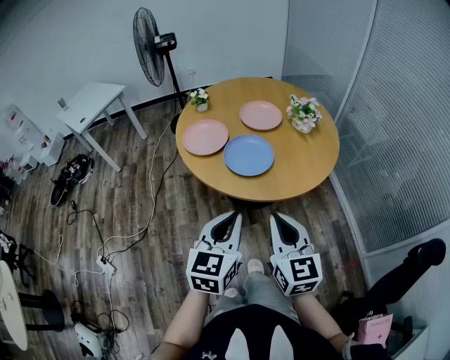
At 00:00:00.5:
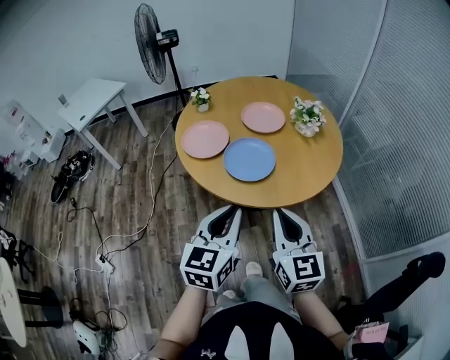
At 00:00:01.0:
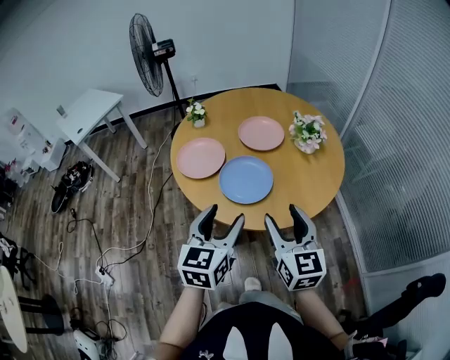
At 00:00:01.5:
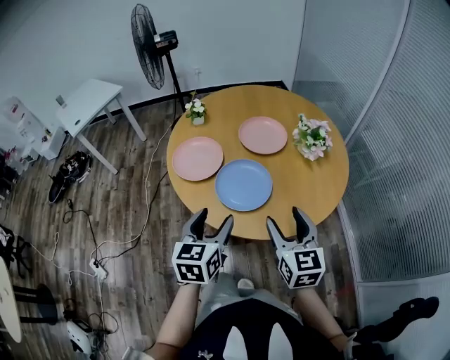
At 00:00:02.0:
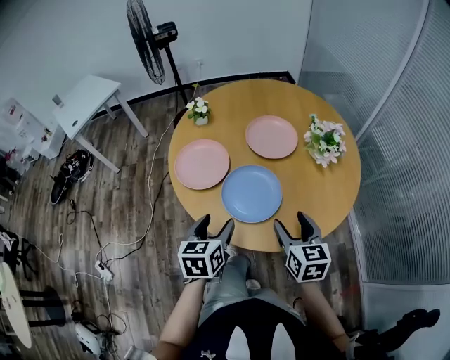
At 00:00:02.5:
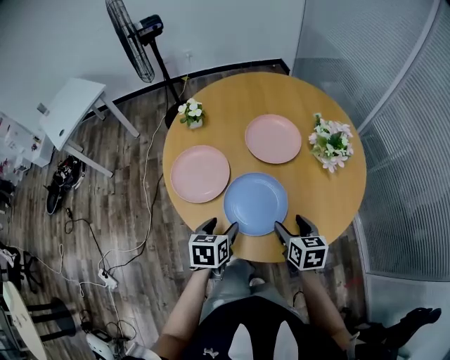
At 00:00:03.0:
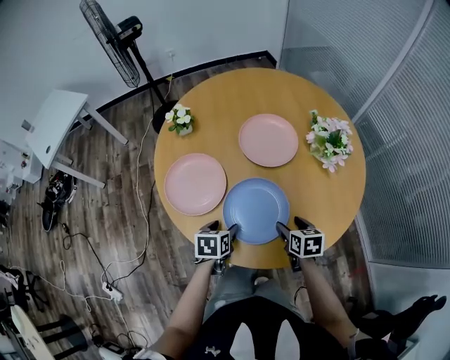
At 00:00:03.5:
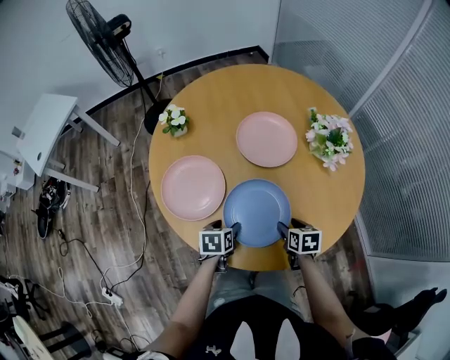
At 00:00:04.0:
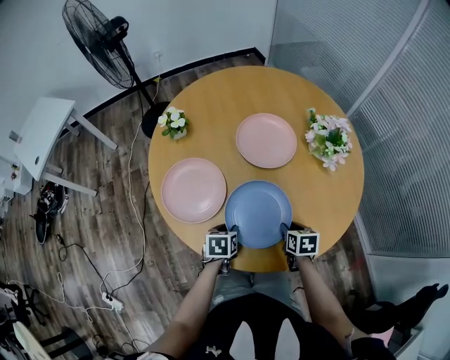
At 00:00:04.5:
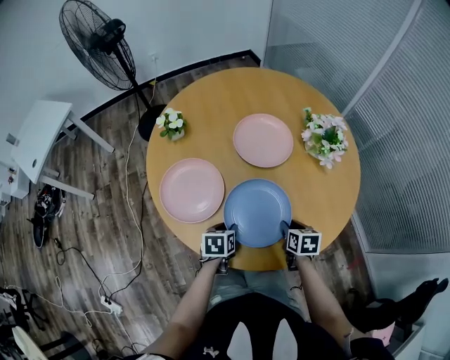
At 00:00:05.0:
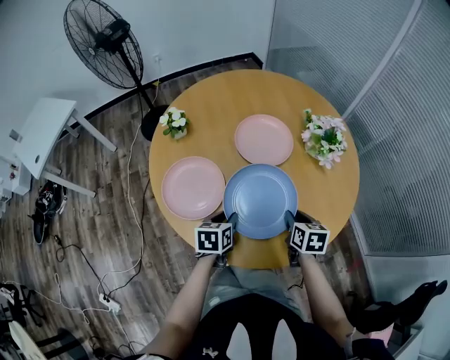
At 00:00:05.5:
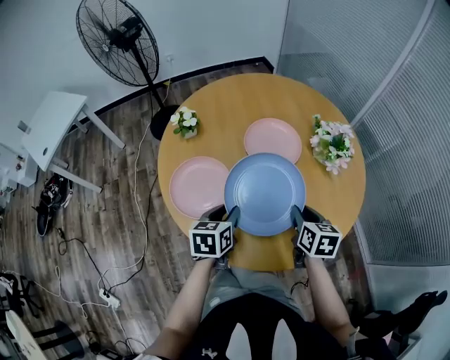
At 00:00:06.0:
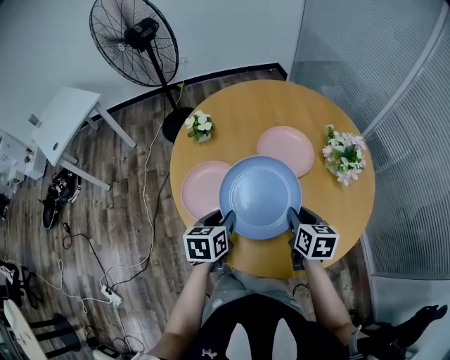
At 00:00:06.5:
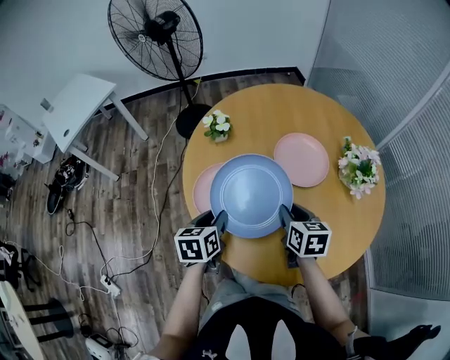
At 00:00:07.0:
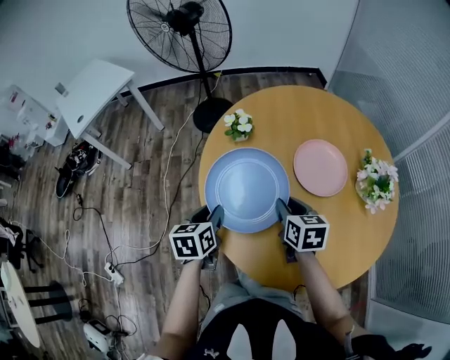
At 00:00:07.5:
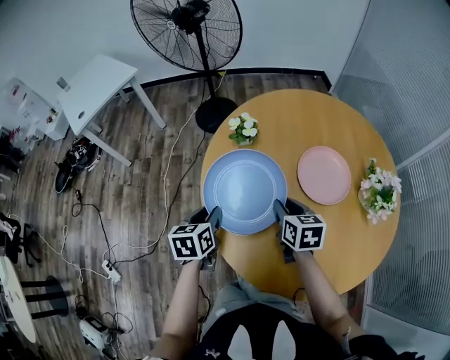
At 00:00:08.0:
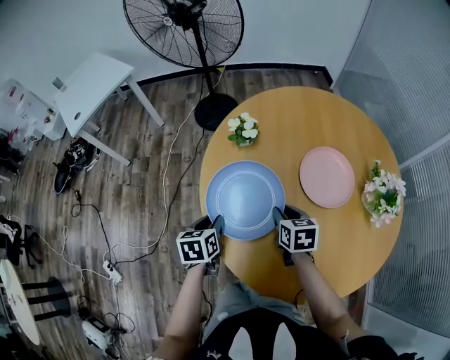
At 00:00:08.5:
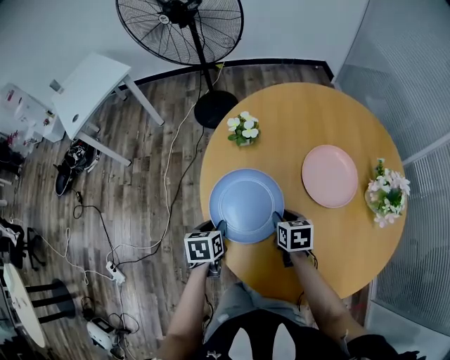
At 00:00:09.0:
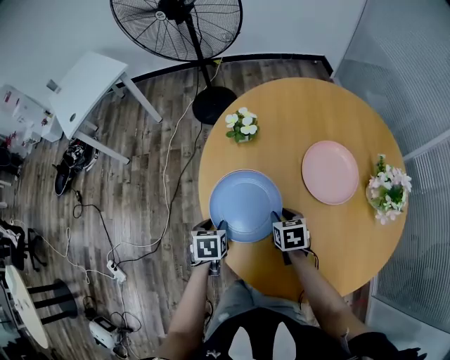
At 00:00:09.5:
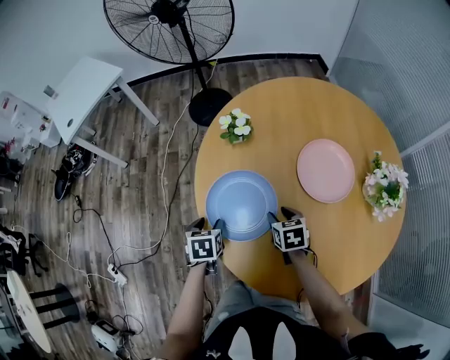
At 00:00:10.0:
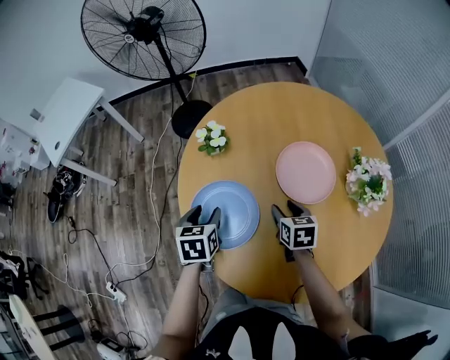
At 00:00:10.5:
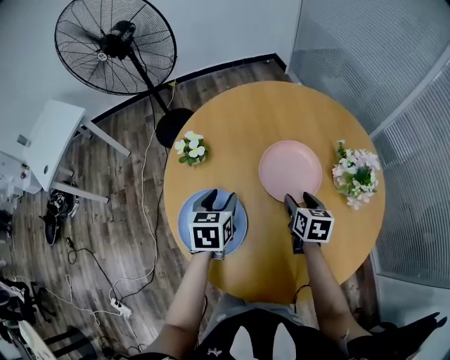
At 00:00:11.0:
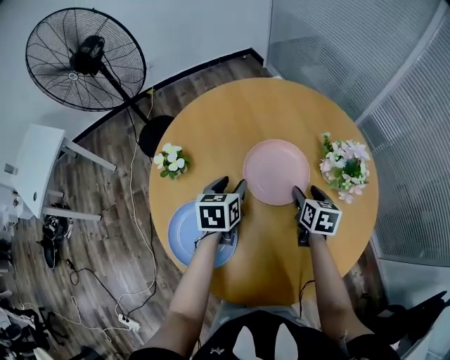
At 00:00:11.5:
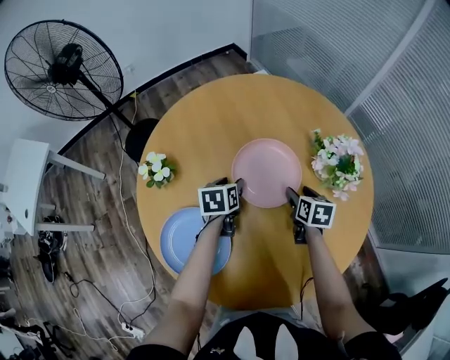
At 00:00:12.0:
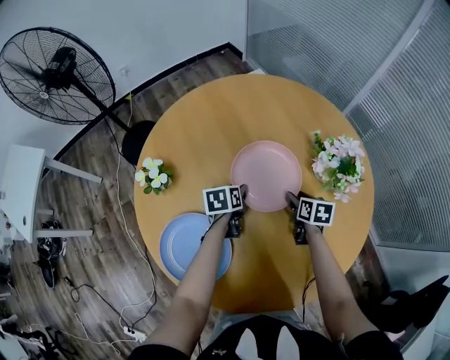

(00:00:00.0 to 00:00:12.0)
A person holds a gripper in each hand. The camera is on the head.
00:00:00.0 - 00:00:02.0: The right gripper is displaced forward by some 25 cm, and opens; the left gripper shifts some 30 cm forward and downward, changes its angle by roughly 30 degrees, and opens up.
00:00:02.0 - 00:00:04.0: The right gripper shifts some 20 cm downward, tips its fingers downward by some 30 degrees, and closes its fingers; the left gripper is displaced downward and forward by roughly 25 cm, turns by approximately 30 degrees, and closes.
00:00:04.0 - 00:00:06.0: Both grippers travel together upward and to the left, roughly 15 cm. The left gripper changes its angle by roughly 20 degrees.
00:00:06.0 - 00:00:08.0: The left gripper is displaced to the left by roughly 15 cm, and rotates some 20 degrees. The right gripper travels to the left and forward by some 20 cm, and turns by roughly 20 degrees.
00:00:08.0 - 00:00:10.0: The left gripper heads to the right and forward, covering some 10 cm. The right gripper shifts some 10 cm to the right, and opens its fingers.
00:00:10.0 - 00:00:12.0: The right gripper moves about 20 cm, and changes its angle by some 30 degrees; the left gripper changes place by approximately 30 cm, and changes its angle by approximately 30 degrees.

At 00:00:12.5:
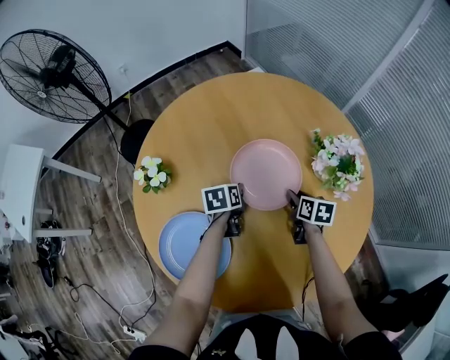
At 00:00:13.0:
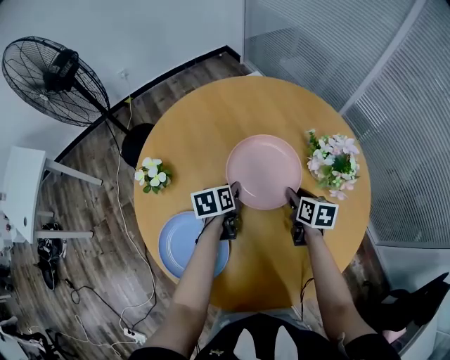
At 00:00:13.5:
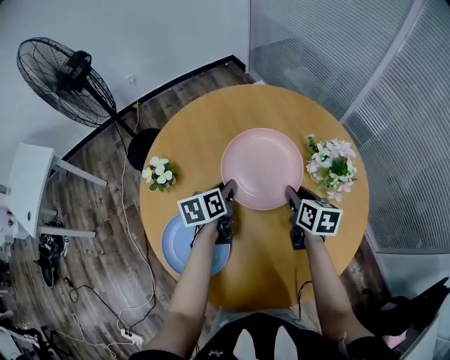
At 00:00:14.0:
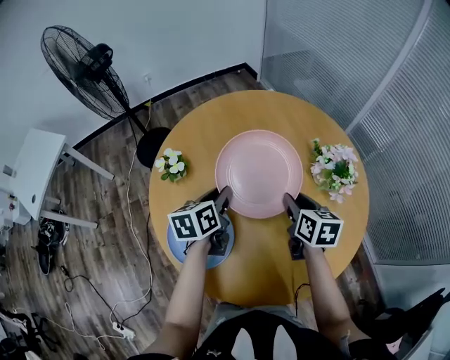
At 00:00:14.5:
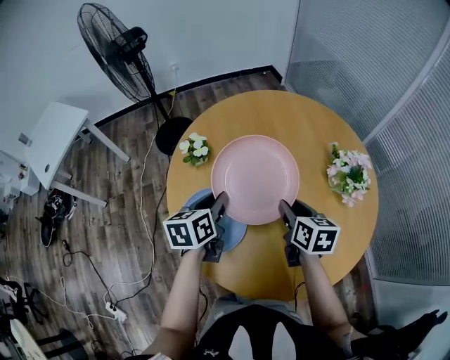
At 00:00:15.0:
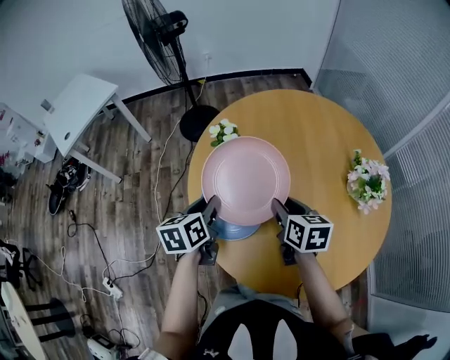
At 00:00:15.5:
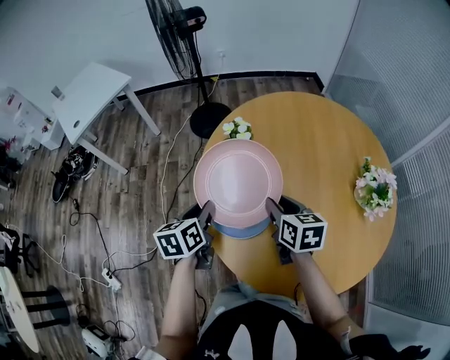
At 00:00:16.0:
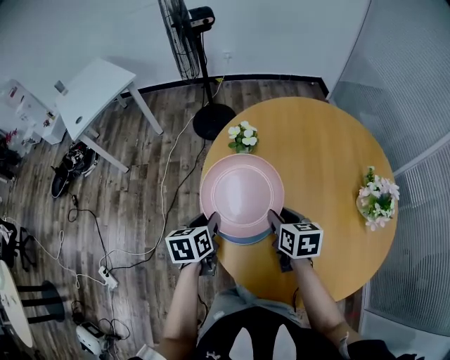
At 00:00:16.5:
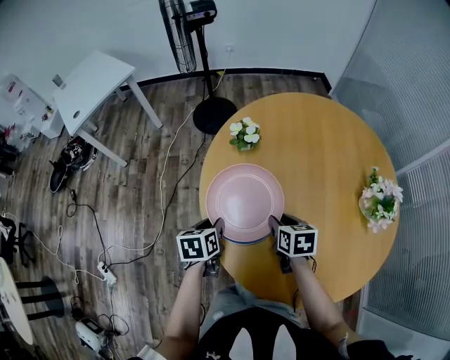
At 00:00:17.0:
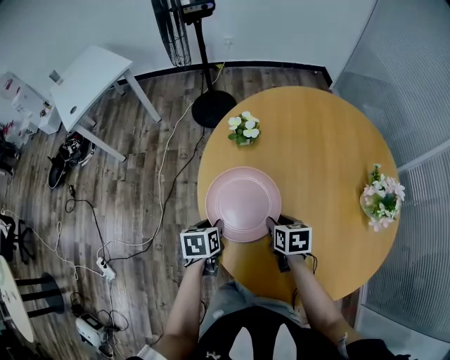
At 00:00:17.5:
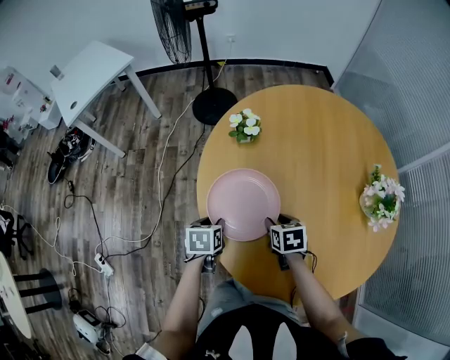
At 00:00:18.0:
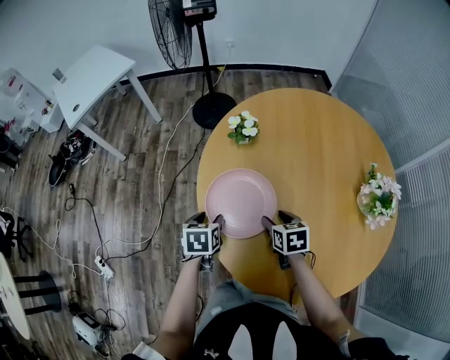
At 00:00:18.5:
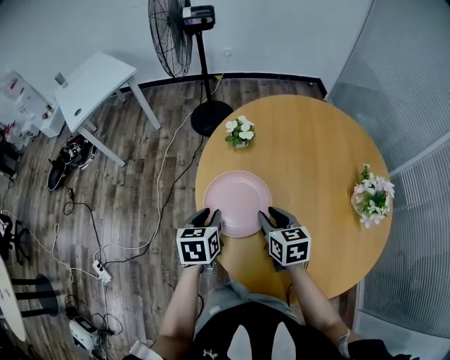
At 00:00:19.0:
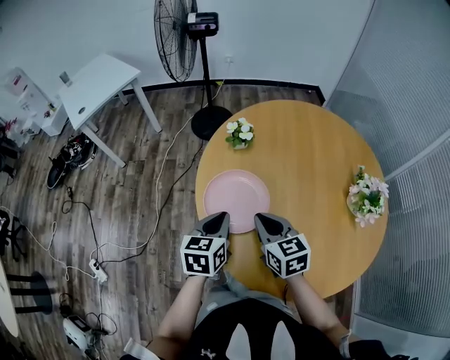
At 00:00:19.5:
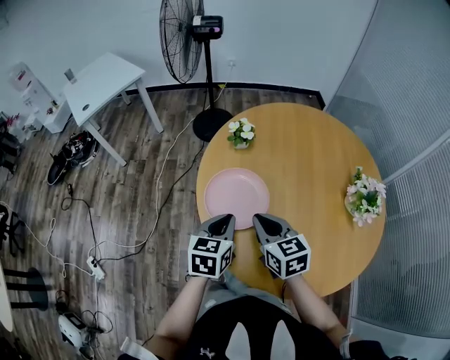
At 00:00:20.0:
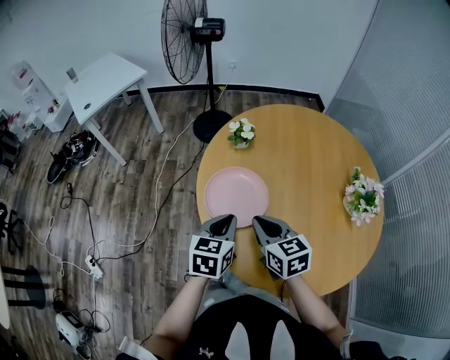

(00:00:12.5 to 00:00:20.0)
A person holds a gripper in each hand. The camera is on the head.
00:00:12.5 - 00:00:14.5: The right gripper travels upward, to the left and backward by about 25 cm, and rotates some 20 degrees. Meanwhile the left gripper travels upward, backward and to the left by approximately 25 cm, and rotates about 30 degrees.
00:00:14.5 - 00:00:16.5: The left gripper shifts some 20 cm to the left, downward and backward, and turns by some 20 degrees; the right gripper is displaced to the left and downward by roughly 15 cm, and swivels roughly 30 degrees.
00:00:16.5 - 00:00:18.0: The left gripper opens.
00:00:18.0 - 00:00:20.0: The left gripper moves upward, backward and to the right, about 15 cm, turns by some 30 degrees, and closes. The right gripper travels upward, backward and to the left by some 20 cm, turns by approximately 30 degrees, and closes its fingers.

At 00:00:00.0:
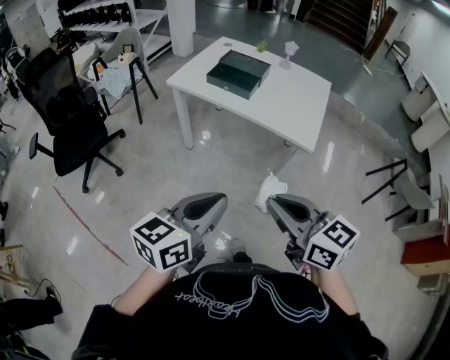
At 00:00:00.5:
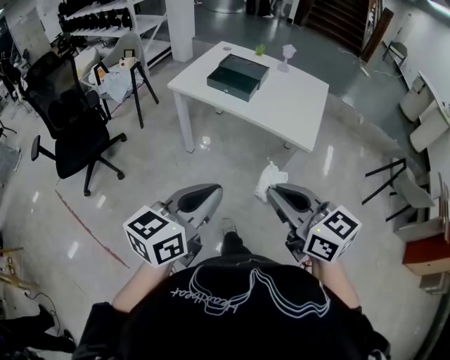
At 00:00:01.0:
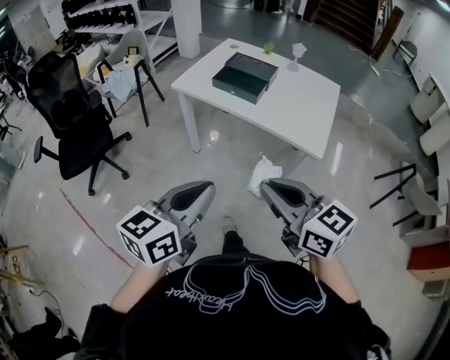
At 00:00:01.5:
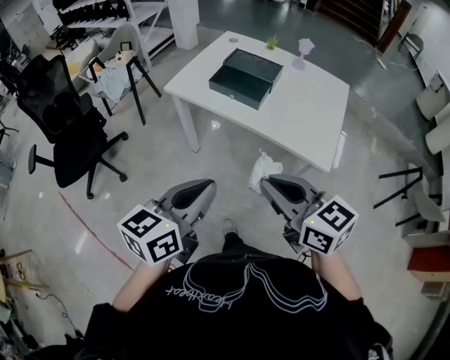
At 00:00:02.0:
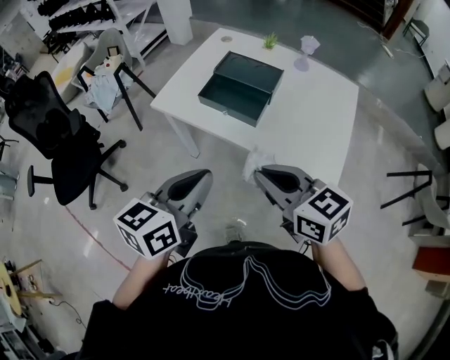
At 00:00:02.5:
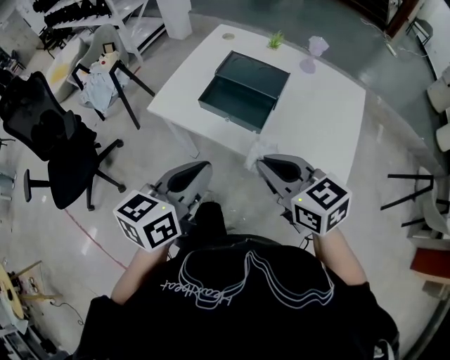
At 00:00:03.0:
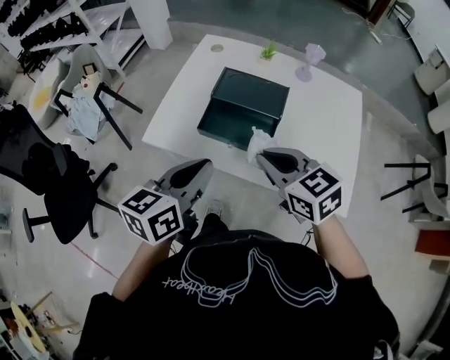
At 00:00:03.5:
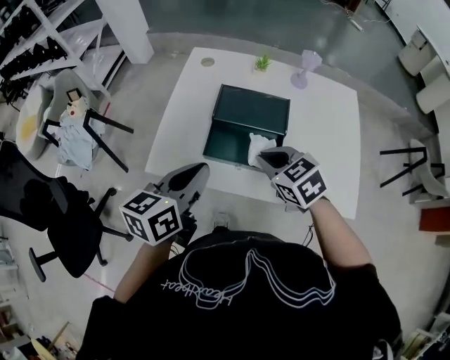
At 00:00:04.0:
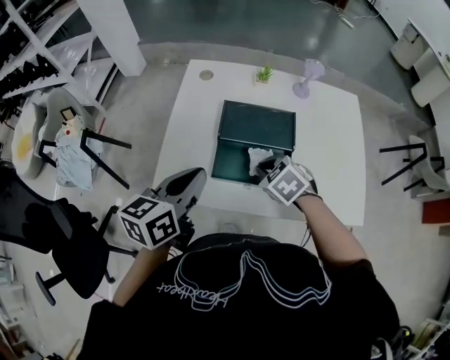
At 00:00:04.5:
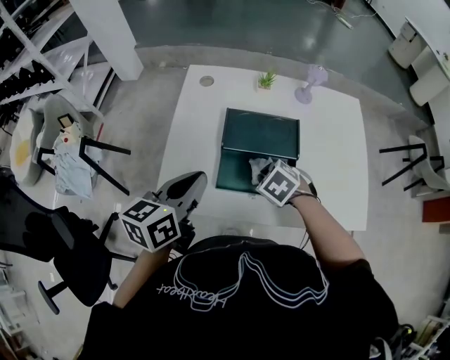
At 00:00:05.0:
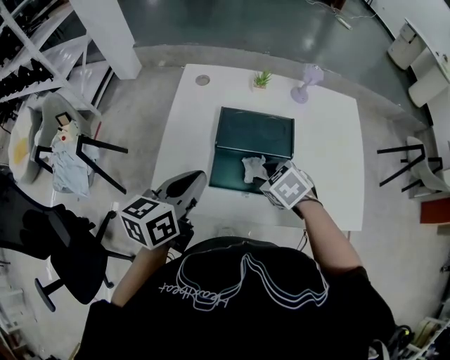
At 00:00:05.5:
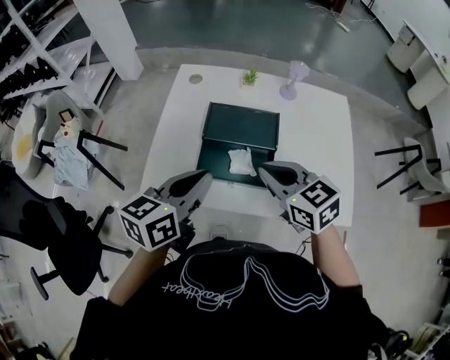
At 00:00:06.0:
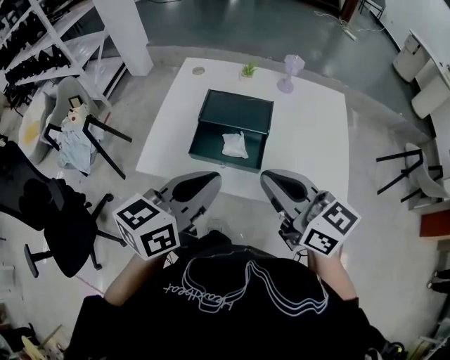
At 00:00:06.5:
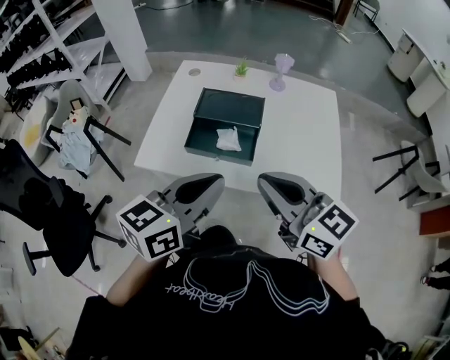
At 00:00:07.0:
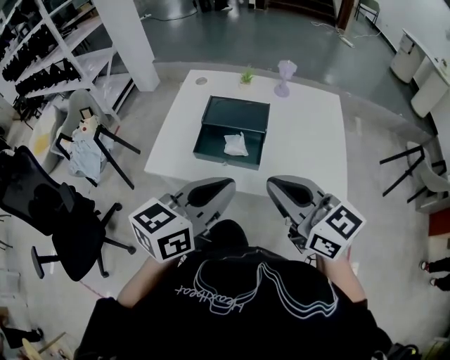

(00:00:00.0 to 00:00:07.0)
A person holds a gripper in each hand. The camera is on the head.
00:00:00.0 - 00:00:02.0: The grippers both shift forward by roughly 30 cm.
00:00:02.0 - 00:00:03.5: The left gripper goes about 25 cm forward. Meanwhile the right gripper shifts approximately 30 cm forward and downward, and swivels about 30 degrees.
00:00:03.5 - 00:00:05.0: The right gripper moves downward and forward, roughly 10 cm, and opens, while the left gripper goes roughly 10 cm forward.
00:00:05.0 - 00:00:07.0: The right gripper moves upward and backward, some 30 cm, tilts its fingers roughly 60 degrees upward, and closes its fingers. The left gripper goes roughly 25 cm backward, to the right and upward.
